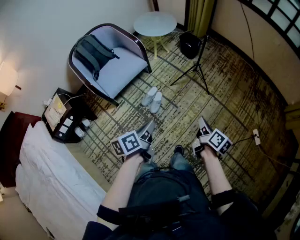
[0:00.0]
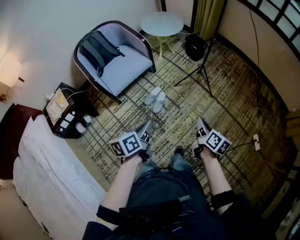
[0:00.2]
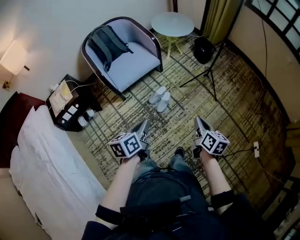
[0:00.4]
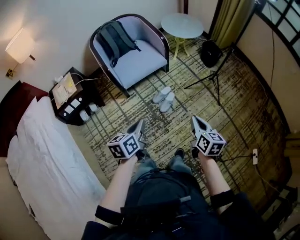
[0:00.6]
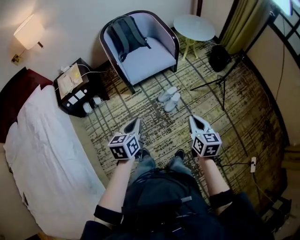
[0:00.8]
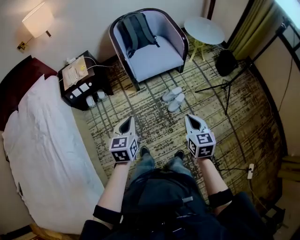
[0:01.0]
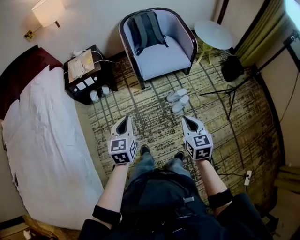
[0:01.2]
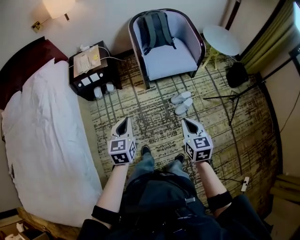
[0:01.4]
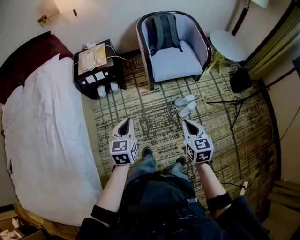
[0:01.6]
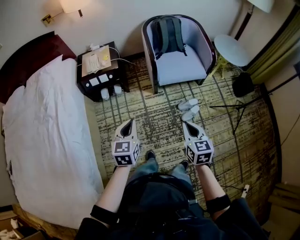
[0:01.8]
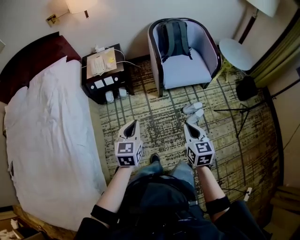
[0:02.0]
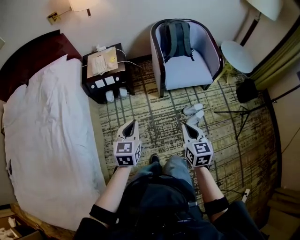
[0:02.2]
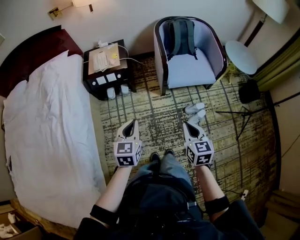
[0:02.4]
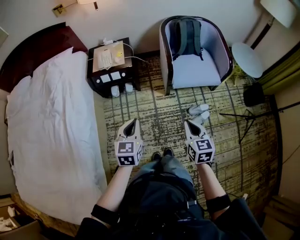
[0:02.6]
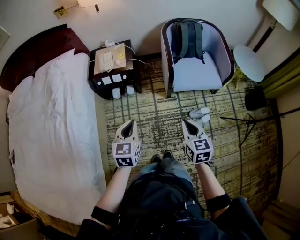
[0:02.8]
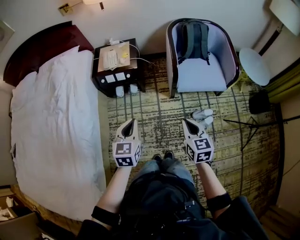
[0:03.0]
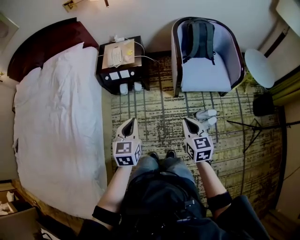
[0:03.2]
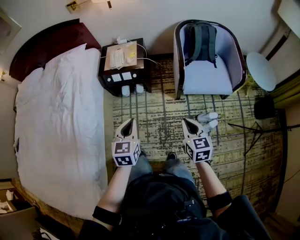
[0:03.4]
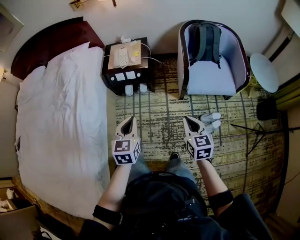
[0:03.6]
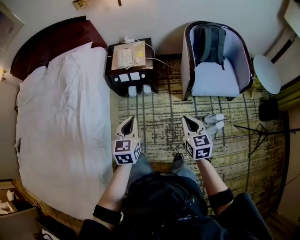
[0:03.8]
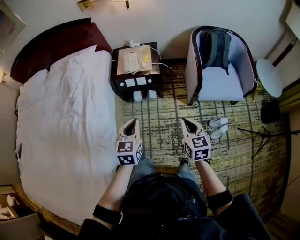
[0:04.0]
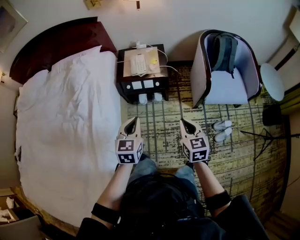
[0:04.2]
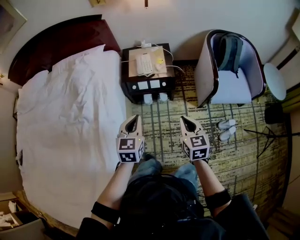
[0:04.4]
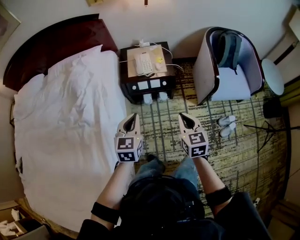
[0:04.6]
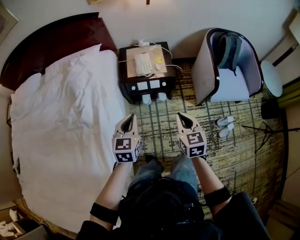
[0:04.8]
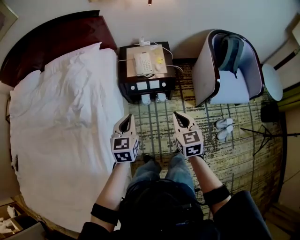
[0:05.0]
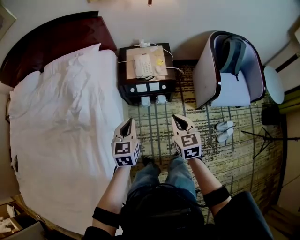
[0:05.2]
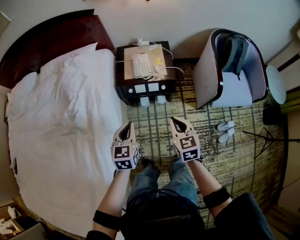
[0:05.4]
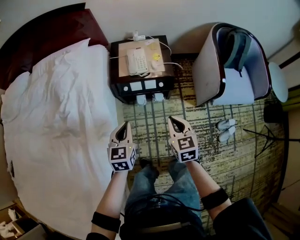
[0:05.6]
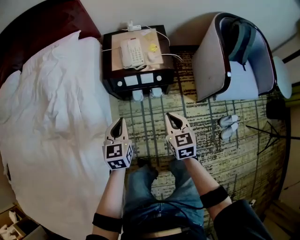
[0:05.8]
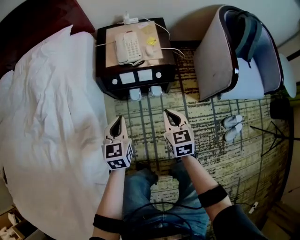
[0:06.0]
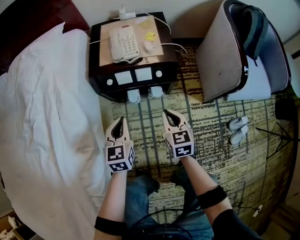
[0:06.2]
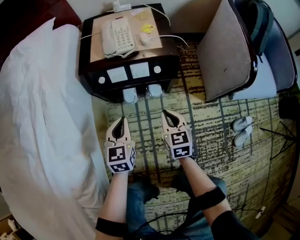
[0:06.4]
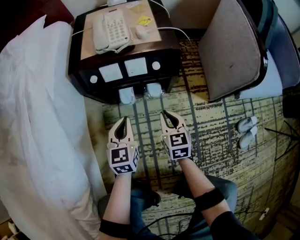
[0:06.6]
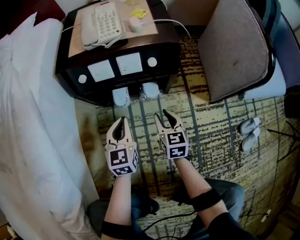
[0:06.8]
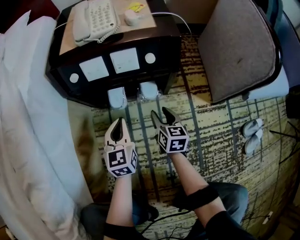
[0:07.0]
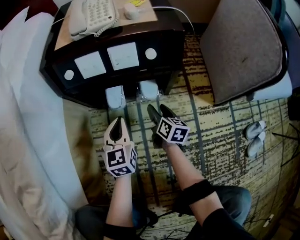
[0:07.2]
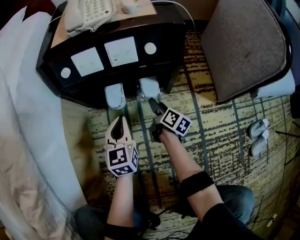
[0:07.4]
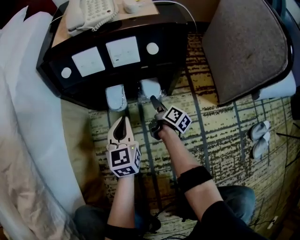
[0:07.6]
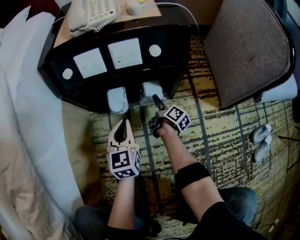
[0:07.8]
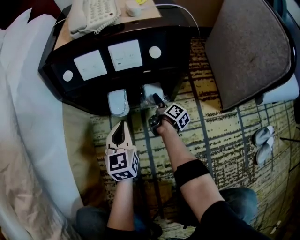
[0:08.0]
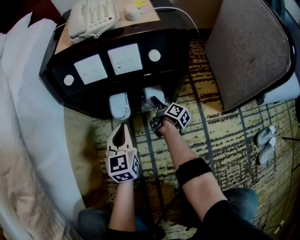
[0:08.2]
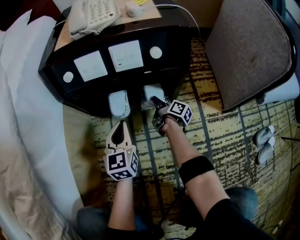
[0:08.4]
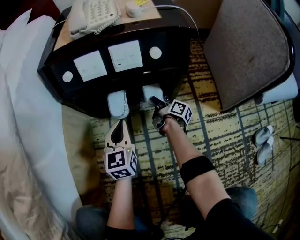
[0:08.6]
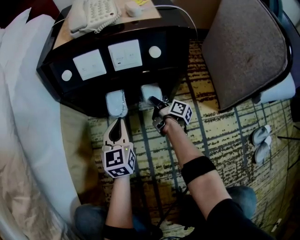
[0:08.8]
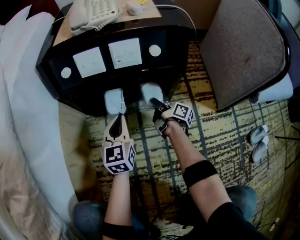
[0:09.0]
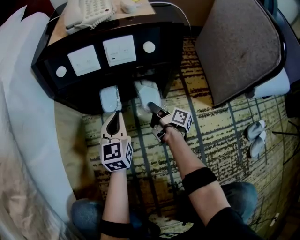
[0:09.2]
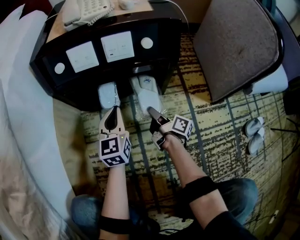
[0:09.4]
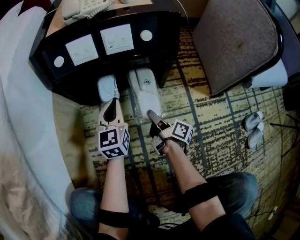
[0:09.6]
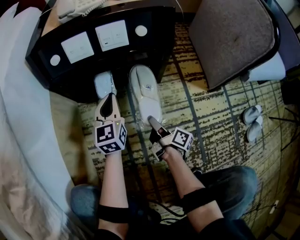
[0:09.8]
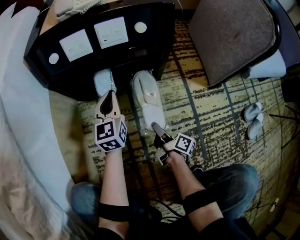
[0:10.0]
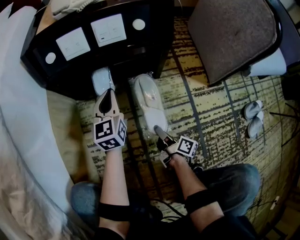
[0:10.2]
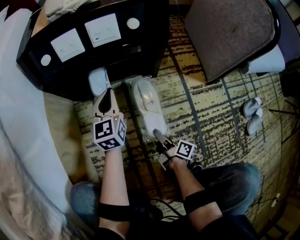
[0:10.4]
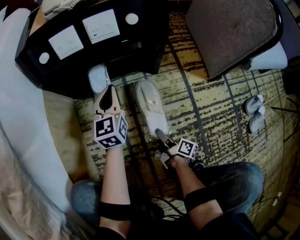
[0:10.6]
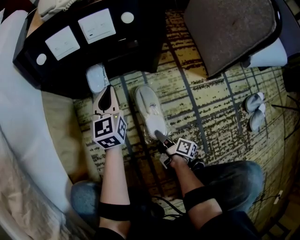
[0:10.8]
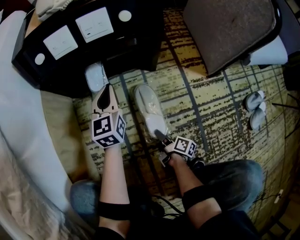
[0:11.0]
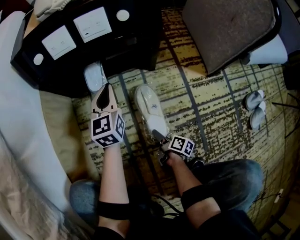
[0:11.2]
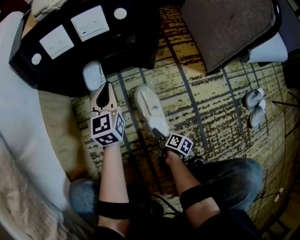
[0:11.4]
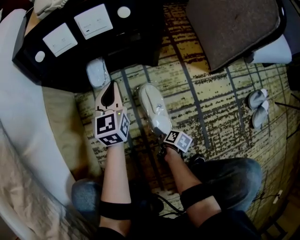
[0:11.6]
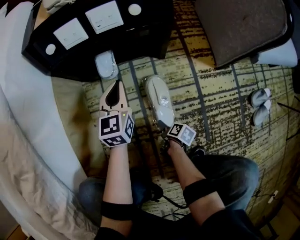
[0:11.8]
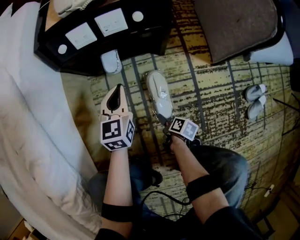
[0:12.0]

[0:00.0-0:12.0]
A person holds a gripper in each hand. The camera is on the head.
0:00.0 to 0:01.6: The left gripper shifts by some 40 cm, and swivels roughly 60 degrees; the right gripper changes place by roughly 40 cm, and rotates around the line of its fingers by approximately 60 degrees, counterclockwise from behind.
0:01.6 to 0:03.0: Both grippers move forward and to the left, roughly 15 cm.
0:03.0 to 0:04.4: The two grippers go roughly 35 cm to the left and forward.
0:04.4 to 0:06.0: The grippers both shift downward and forward by about 35 cm.
0:06.0 to 0:07.6: Both grippers travel together downward, roughly 50 cm. The right gripper rolls clockwise, seen from behind, by about 70 degrees, and opens up.
0:07.6 to 0:09.0: The right gripper closes up.
0:09.0 to 0:10.4: The right gripper moves backward, roughly 25 cm.
0:10.4 to 0:12.0: The left gripper shifts roughly 10 cm upward and backward; the right gripper shifts approximately 10 cm backward, moves about 10 cm downward and comes back, angles its fingers downward, by approximately 40 degrees, and opens its fingers.

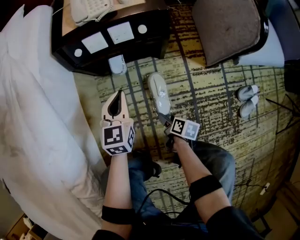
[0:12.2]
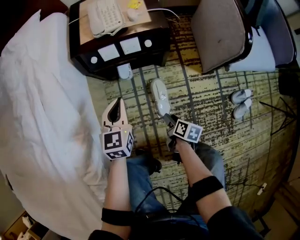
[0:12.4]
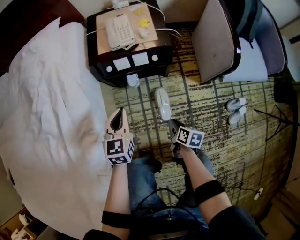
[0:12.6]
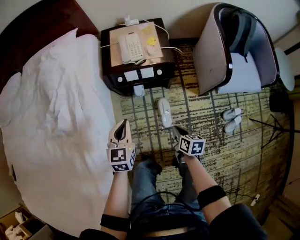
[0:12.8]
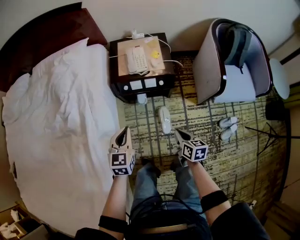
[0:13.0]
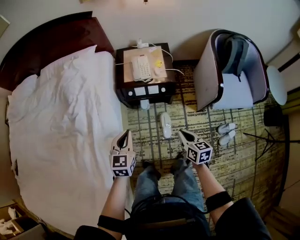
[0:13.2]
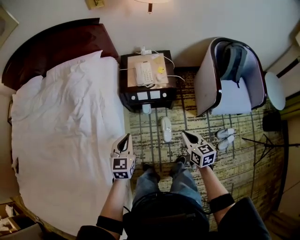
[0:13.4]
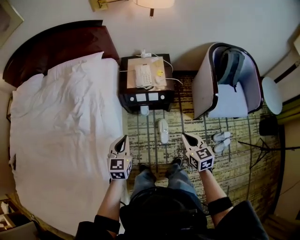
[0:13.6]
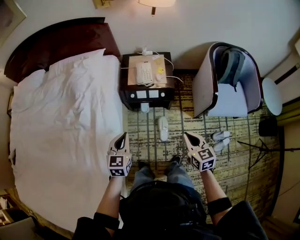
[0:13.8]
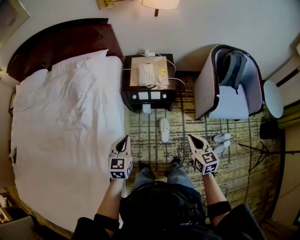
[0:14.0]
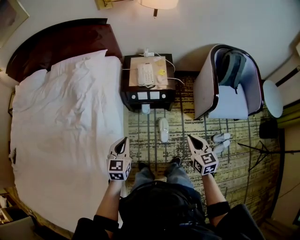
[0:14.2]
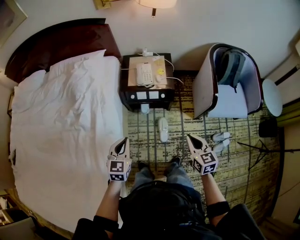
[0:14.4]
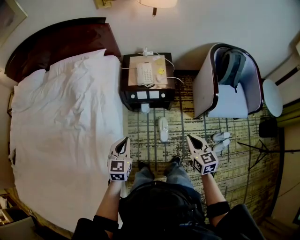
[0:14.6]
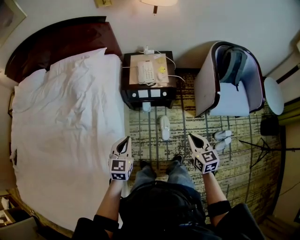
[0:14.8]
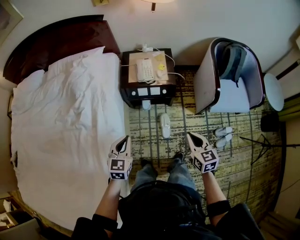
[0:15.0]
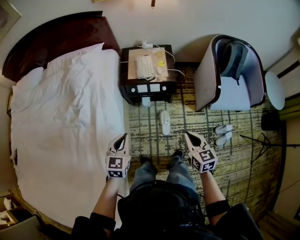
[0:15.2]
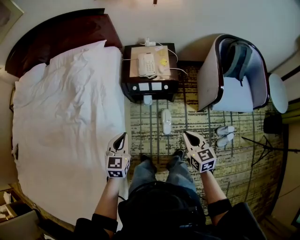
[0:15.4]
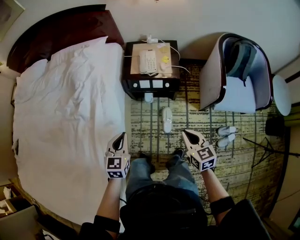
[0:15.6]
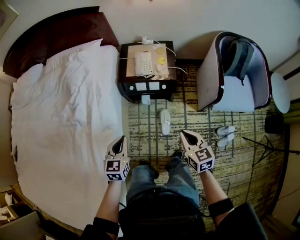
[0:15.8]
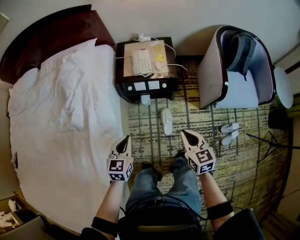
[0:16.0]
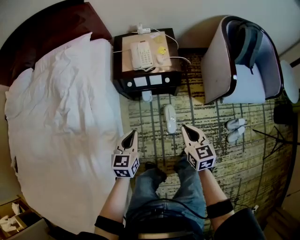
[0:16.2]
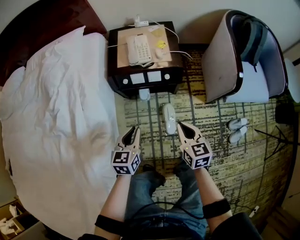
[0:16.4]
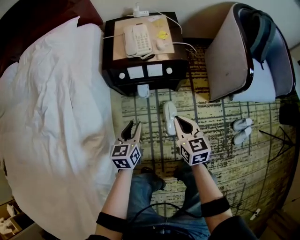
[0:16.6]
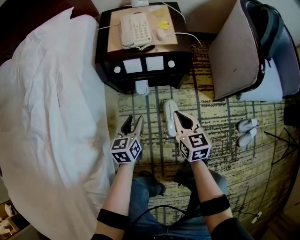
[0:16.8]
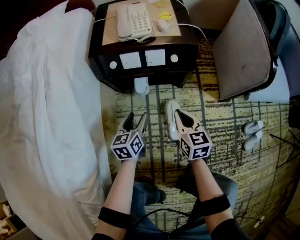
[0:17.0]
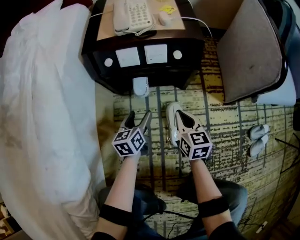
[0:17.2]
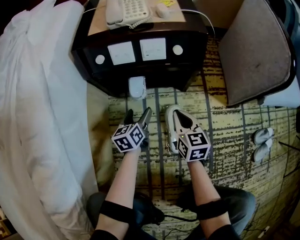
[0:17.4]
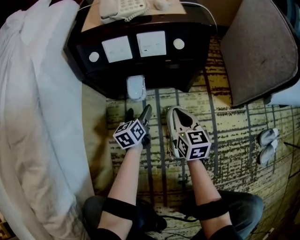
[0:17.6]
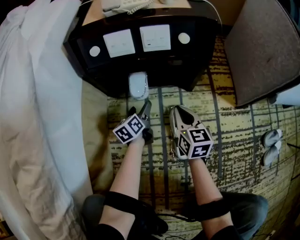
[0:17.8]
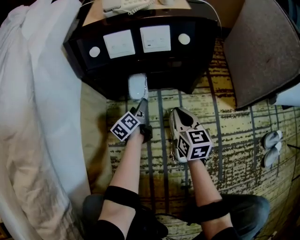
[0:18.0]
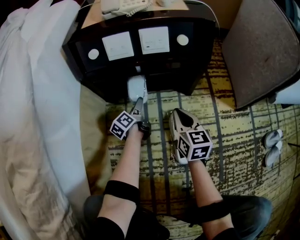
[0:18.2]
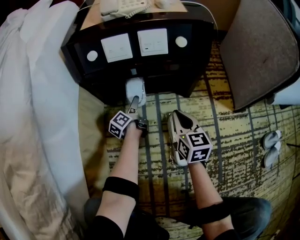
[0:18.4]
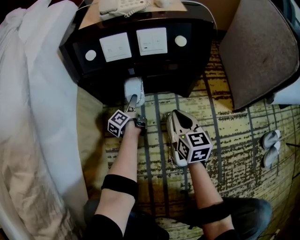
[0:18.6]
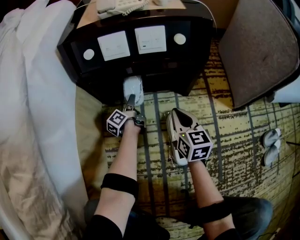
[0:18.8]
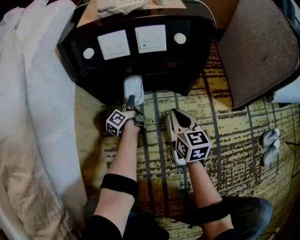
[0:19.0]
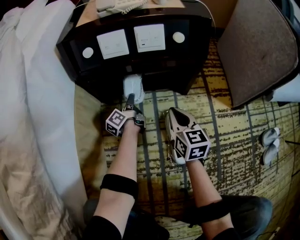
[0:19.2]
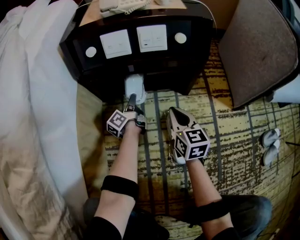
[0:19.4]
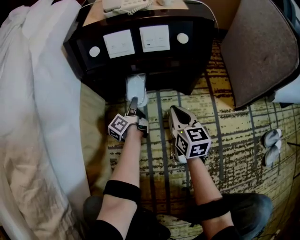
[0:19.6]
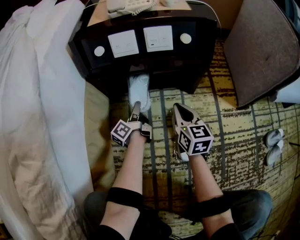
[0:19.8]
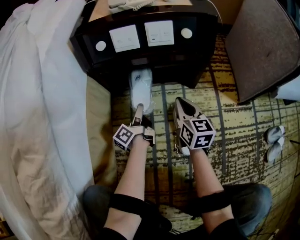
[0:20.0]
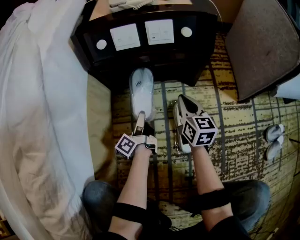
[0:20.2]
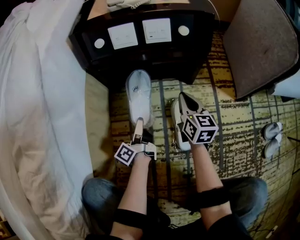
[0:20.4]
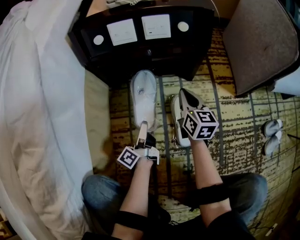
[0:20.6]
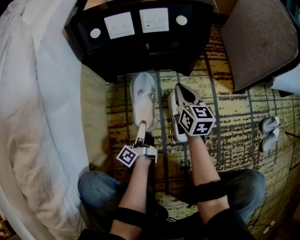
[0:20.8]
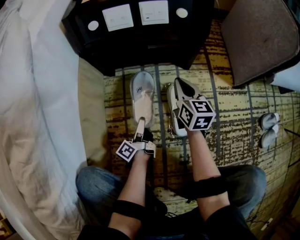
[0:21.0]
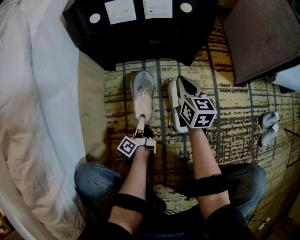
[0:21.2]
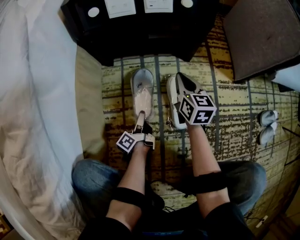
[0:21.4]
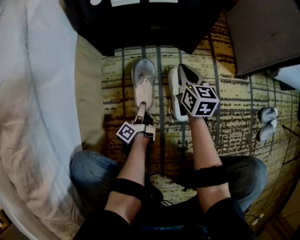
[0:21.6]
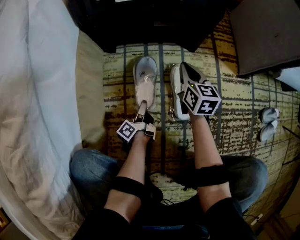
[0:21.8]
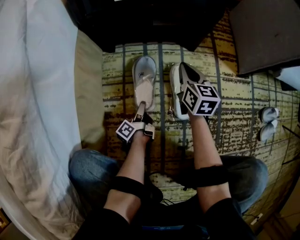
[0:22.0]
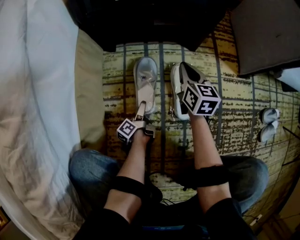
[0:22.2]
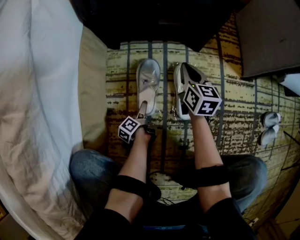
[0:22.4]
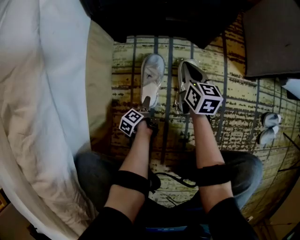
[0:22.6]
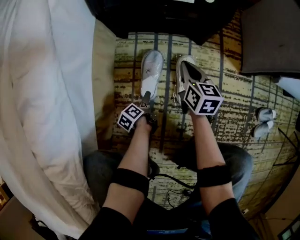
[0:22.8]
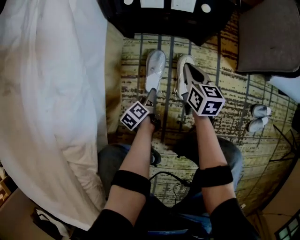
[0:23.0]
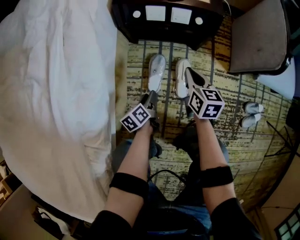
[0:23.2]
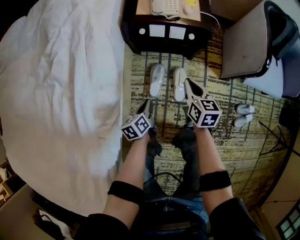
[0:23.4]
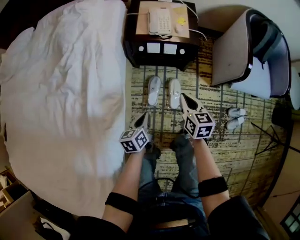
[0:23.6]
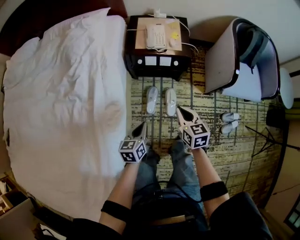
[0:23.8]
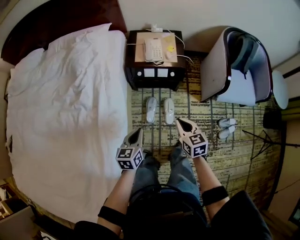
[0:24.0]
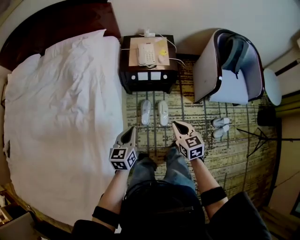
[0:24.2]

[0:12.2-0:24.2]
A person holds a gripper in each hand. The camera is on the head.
0:12.2 to 0:13.8: Both grippers travel together upward, approximately 60 cm. The right gripper rolls counterclockwise, seen from behind, by roughly 60 degrees, and closes its fingers.
0:13.8 to 0:15.2: The grippers stay close to where they were, moving slightly.
0:15.2 to 0:16.6: The left gripper travels downward by roughly 35 cm, and rotates about 20 degrees, while the right gripper goes approximately 35 cm downward and forward.
0:16.6 to 0:18.2: The grippers both shift downward by about 40 cm. The left gripper rolls counterclockwise, seen from behind, by some 50 degrees, and opens its fingers.
0:18.2 to 0:19.8: The left gripper shifts by roughly 5 cm, and closes.
0:19.8 to 0:21.2: The left gripper heads backward, covering some 20 cm.
0:21.2 to 0:22.6: The left gripper travels backward and downward by some 10 cm, tips its fingers downward by approximately 40 degrees, and opens.
0:22.6 to 0:24.2: Both grippers move upward, approximately 80 cm. The left gripper rolls clockwise, seen from behind, by approximately 70 degrees, and closes its fingers.
